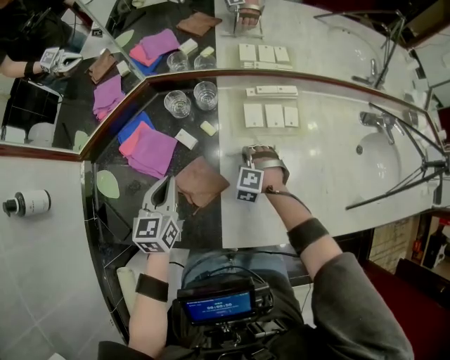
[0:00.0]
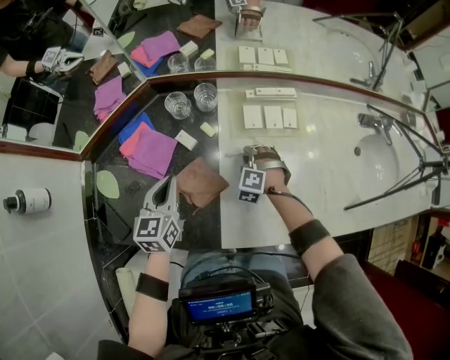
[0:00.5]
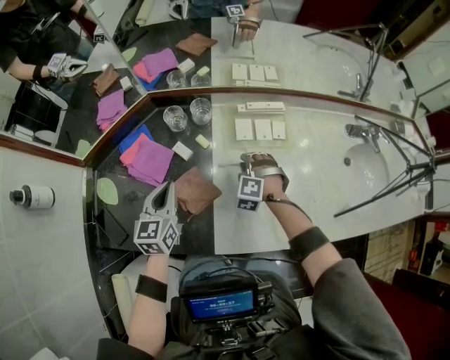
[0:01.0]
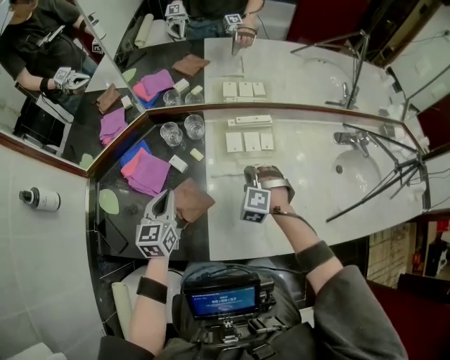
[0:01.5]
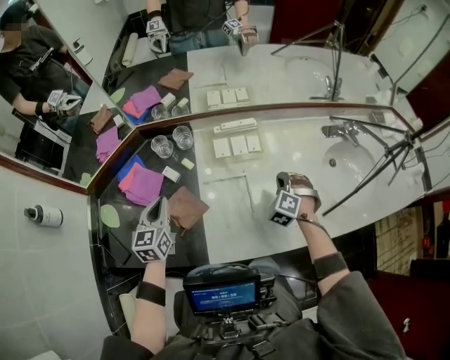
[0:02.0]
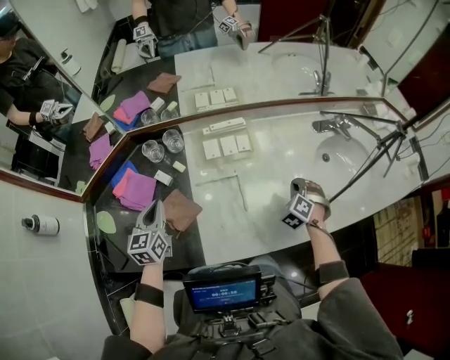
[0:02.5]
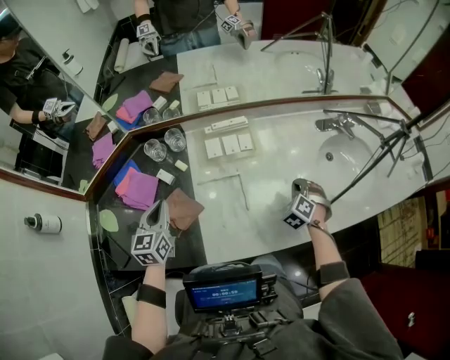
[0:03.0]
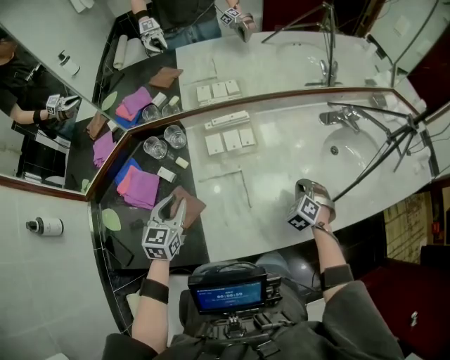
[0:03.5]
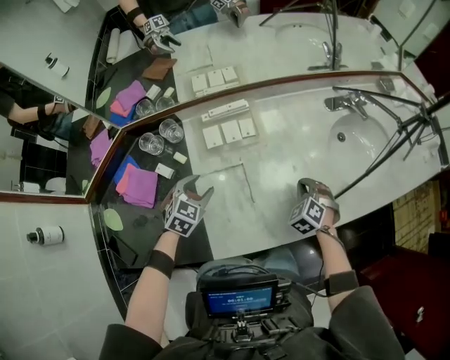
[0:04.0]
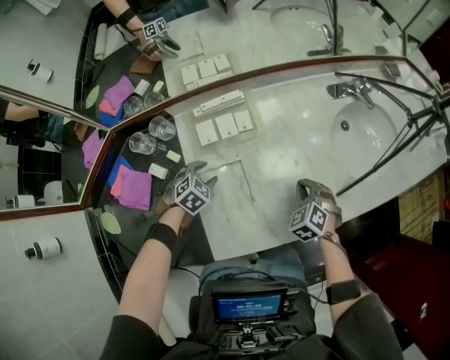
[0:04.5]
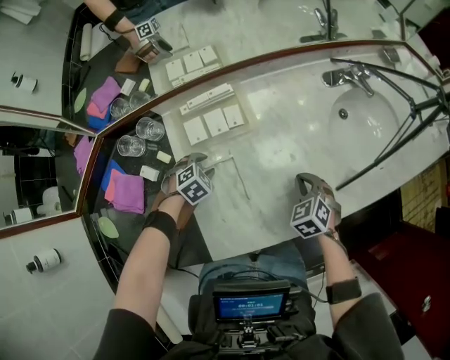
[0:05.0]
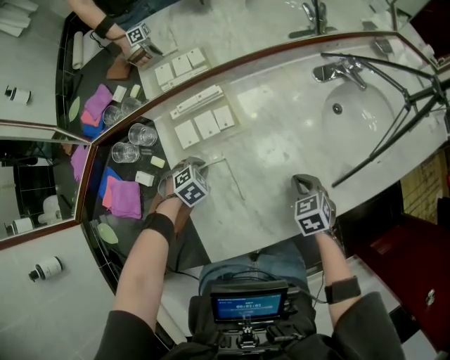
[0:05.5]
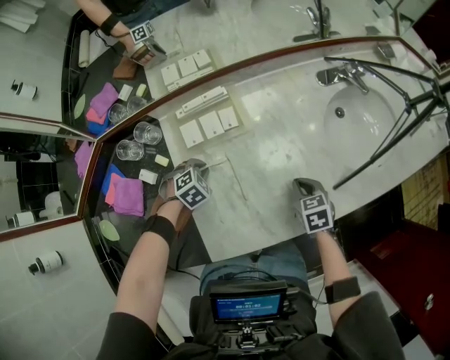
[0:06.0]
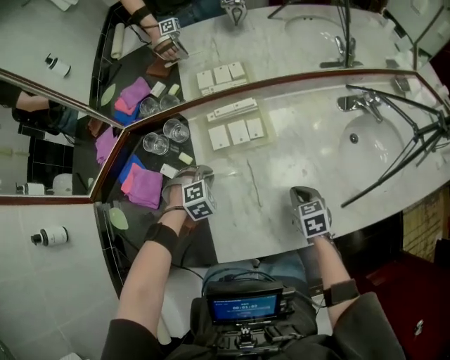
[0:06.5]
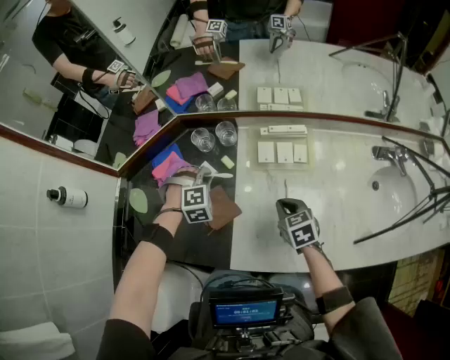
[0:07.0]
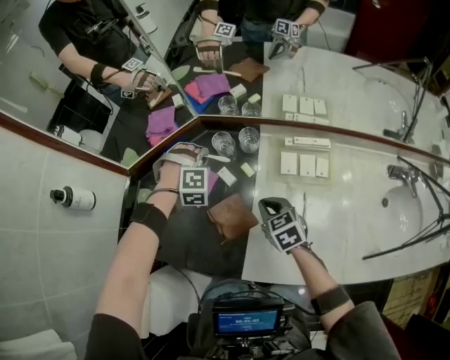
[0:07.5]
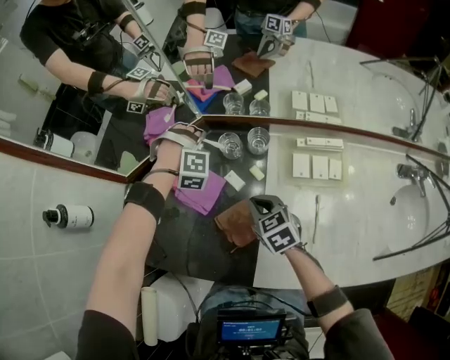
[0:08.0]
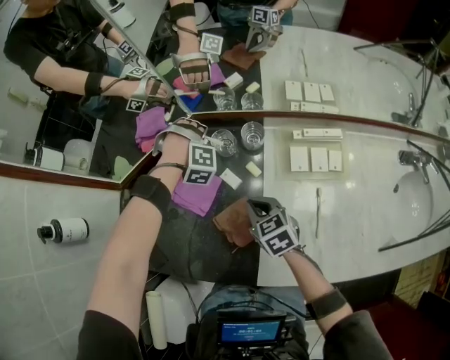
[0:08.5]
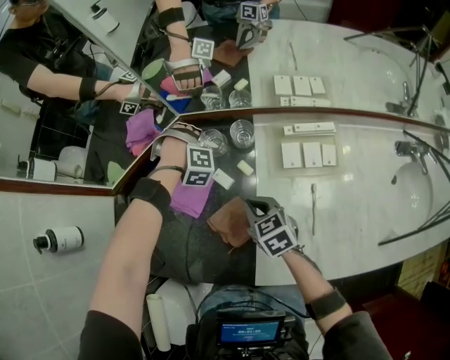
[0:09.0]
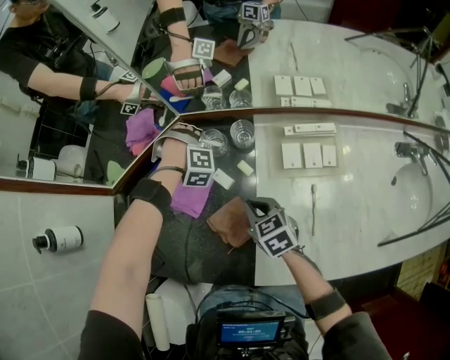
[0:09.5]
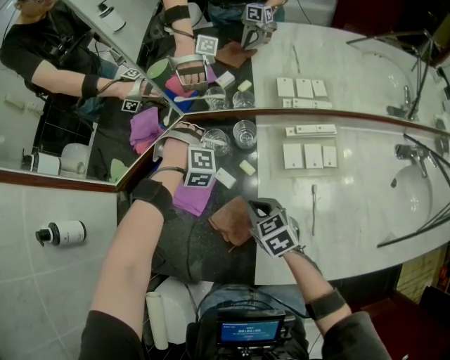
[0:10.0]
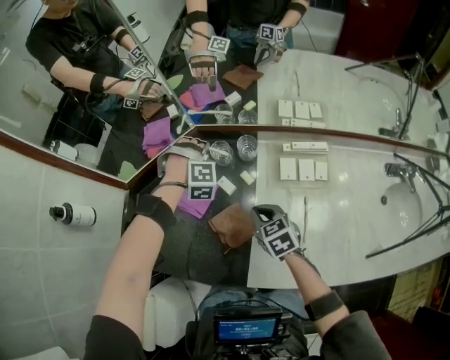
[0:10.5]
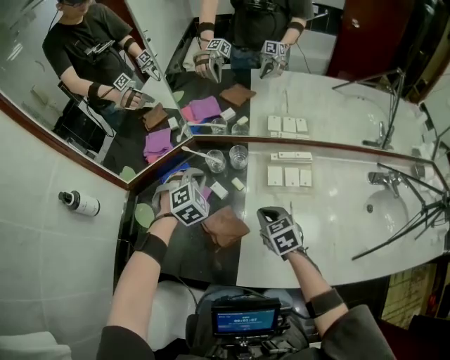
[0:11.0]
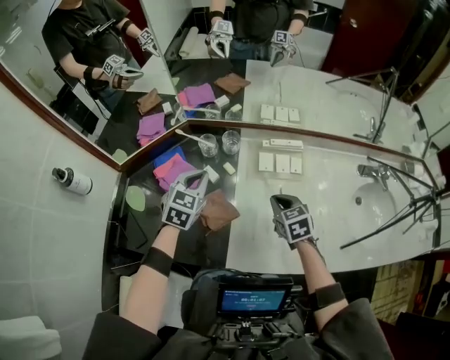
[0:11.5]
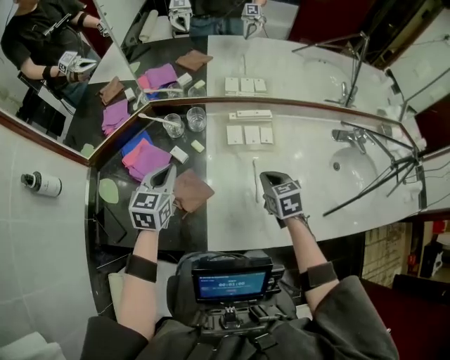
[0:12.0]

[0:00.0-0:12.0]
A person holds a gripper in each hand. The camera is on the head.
0:00.0 to 0:02.0: The right gripper is displaced to the right and upward by about 25 cm, and swivels some 20 degrees, while the left gripper heads upward, covering approximately 5 cm.
0:02.0 to 0:04.0: The right gripper heads to the right, covering some 10 cm, and changes its angle by about 20 degrees. Meanwhile the left gripper goes some 20 cm to the right, downward and forward, turns by approximately 50 degrees, and opens up.
0:04.0 to 0:06.0: The left gripper goes some 10 cm downward, changes its angle by about 30 degrees, and closes up, while the right gripper rotates around the line of its fingers by some 40 degrees, clockwise from behind.
0:06.0 to 0:08.0: The right gripper ends up about 50 cm from where it was, and changes its angle by approximately 40 degrees; the left gripper shifts by approximately 40 cm, and swivels roughly 50 degrees.
0:08.0 to 0:10.0: The left gripper heads downward, covering roughly 5 cm.
0:10.0 to 0:12.0: The right gripper changes place by roughly 25 cm, while the left gripper ends up some 30 cm from where it was, twists about 100 degrees counterclockwise, seen from behind, and closes its fingers.

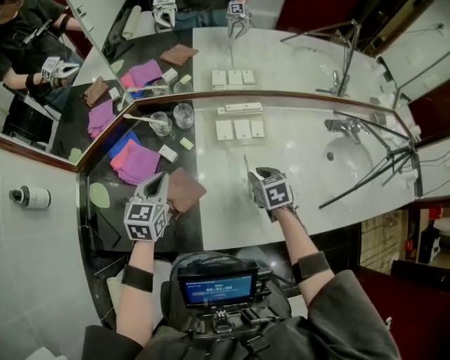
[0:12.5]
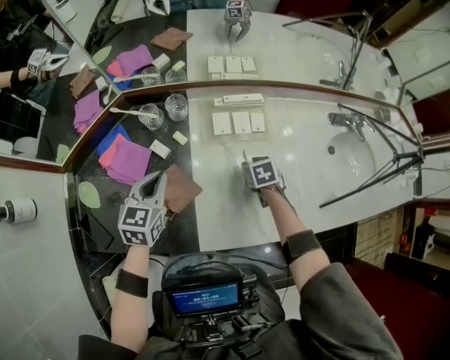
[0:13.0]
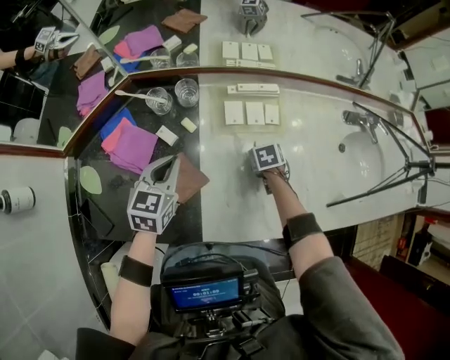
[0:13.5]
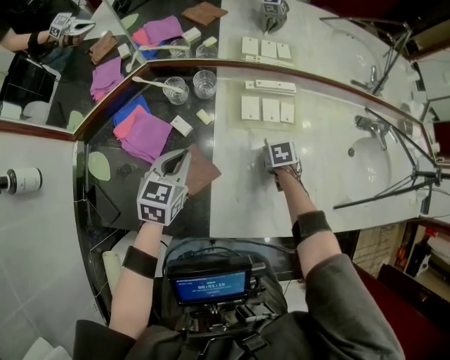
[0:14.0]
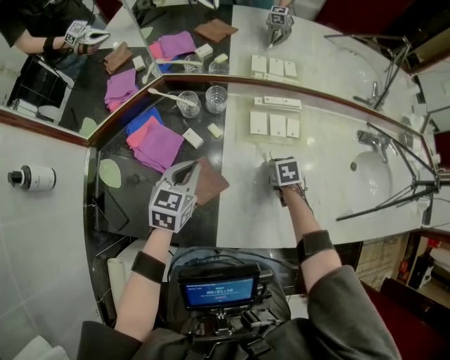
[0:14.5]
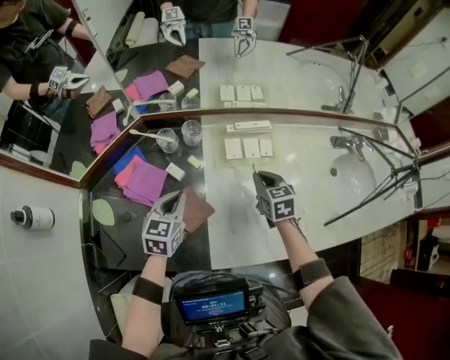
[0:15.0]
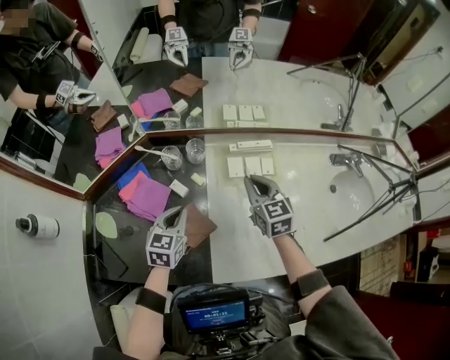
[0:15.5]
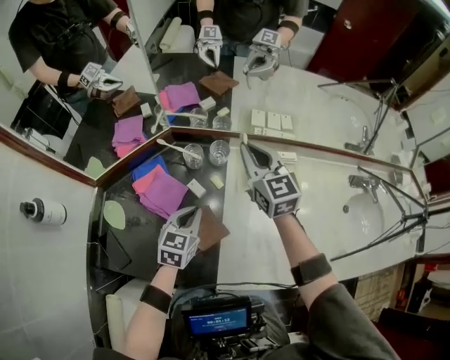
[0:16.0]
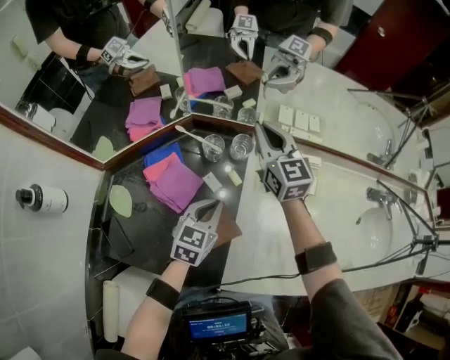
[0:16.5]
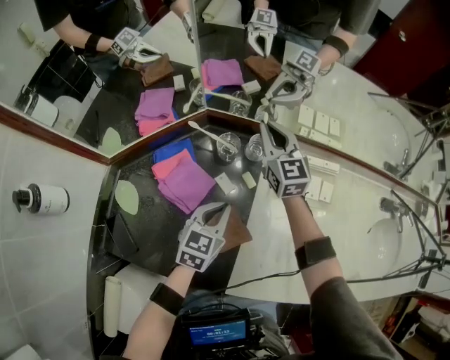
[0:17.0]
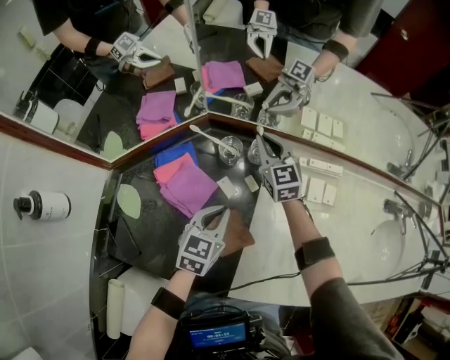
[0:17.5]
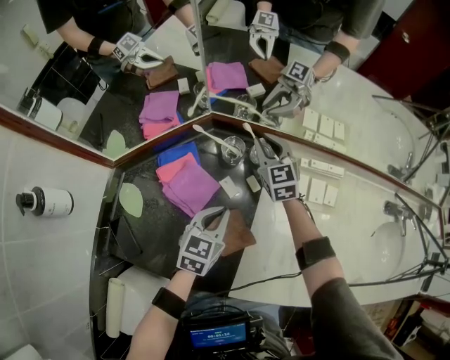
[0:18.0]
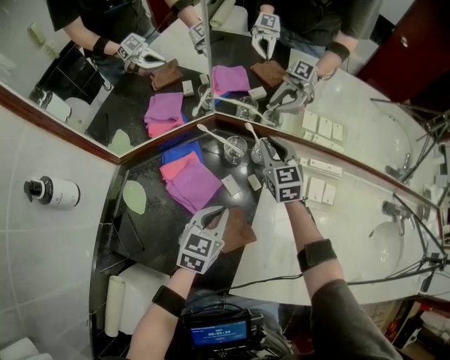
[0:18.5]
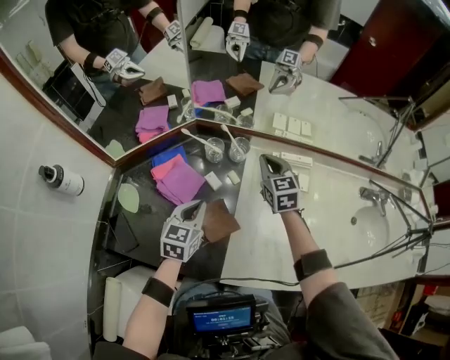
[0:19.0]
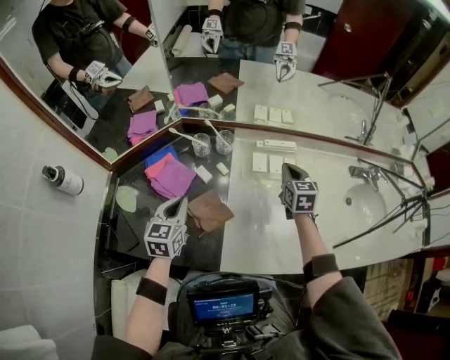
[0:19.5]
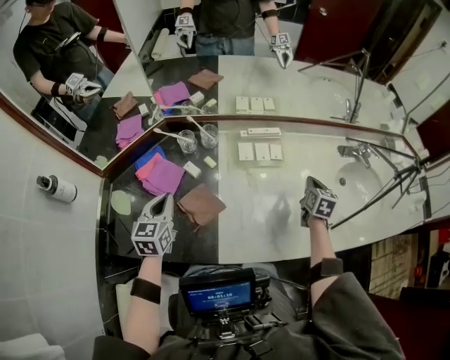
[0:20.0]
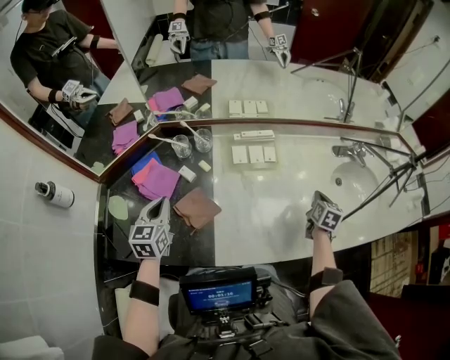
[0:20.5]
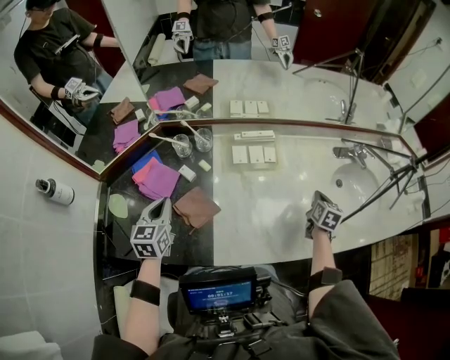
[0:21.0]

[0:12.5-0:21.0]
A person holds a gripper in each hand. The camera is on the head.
0:12.5 to 0:14.5: The right gripper travels downward by about 10 cm.
0:14.5 to 0:16.5: The right gripper travels upward, forward and to the left by roughly 40 cm, and tips its fingers upward by about 60 degrees.
0:16.5 to 0:19.0: The right gripper moves downward, backward and to the right, roughly 10 cm, while the left gripper moves to the left, about 5 cm.
0:19.0 to 0:21.0: The right gripper is displaced to the right and backward by about 40 cm, and turns by roughly 50 degrees. The left gripper moves upward, some 5 cm.

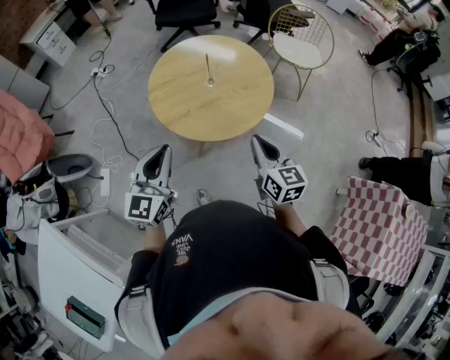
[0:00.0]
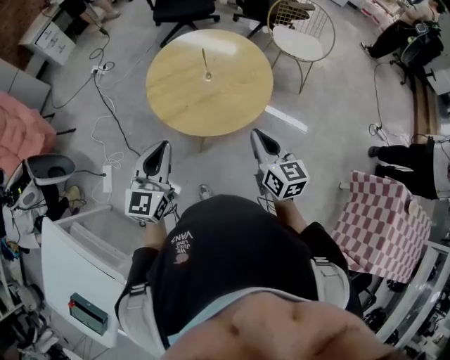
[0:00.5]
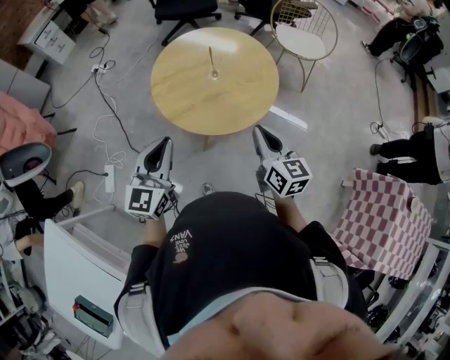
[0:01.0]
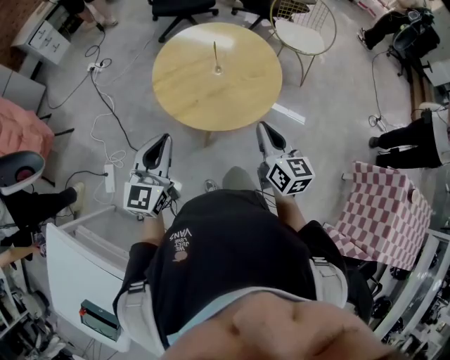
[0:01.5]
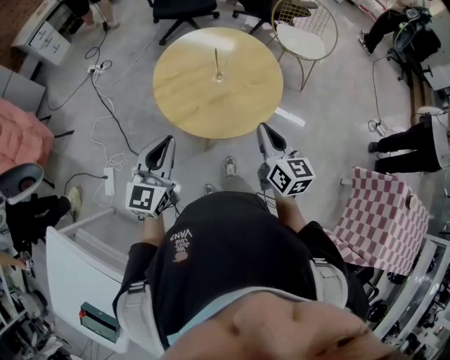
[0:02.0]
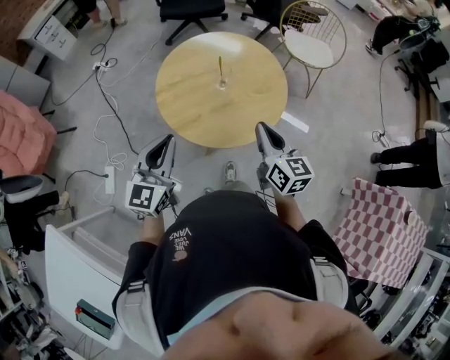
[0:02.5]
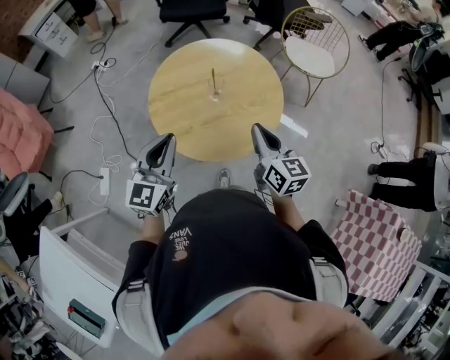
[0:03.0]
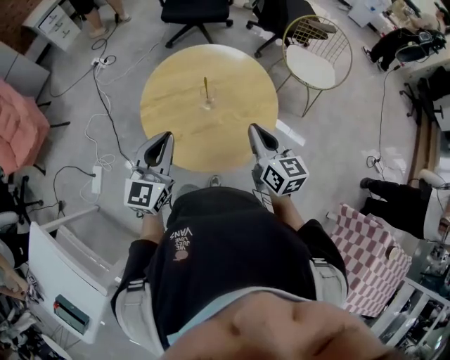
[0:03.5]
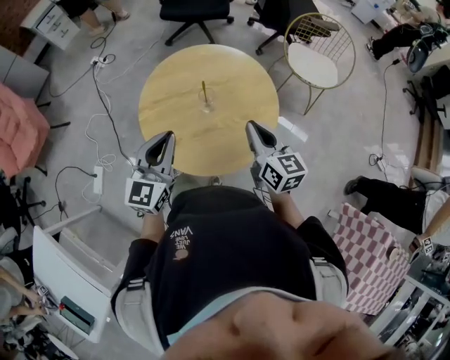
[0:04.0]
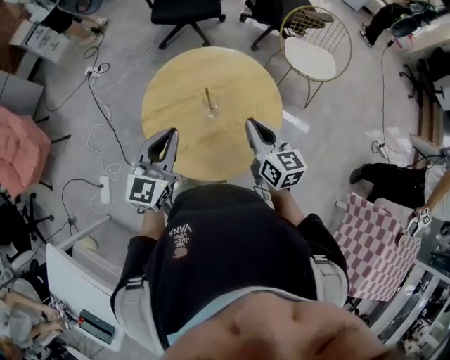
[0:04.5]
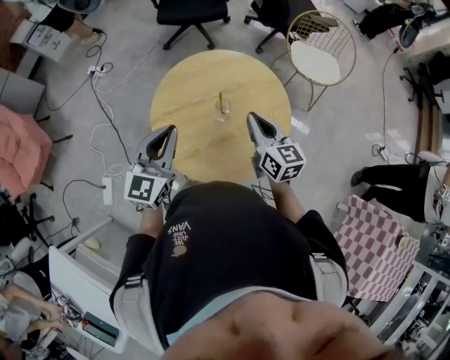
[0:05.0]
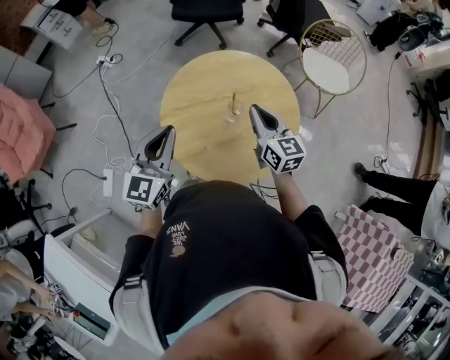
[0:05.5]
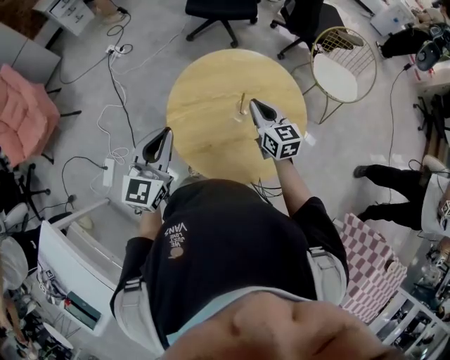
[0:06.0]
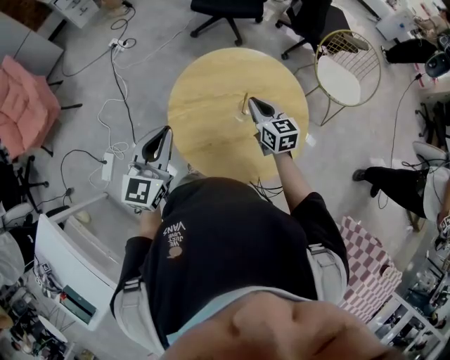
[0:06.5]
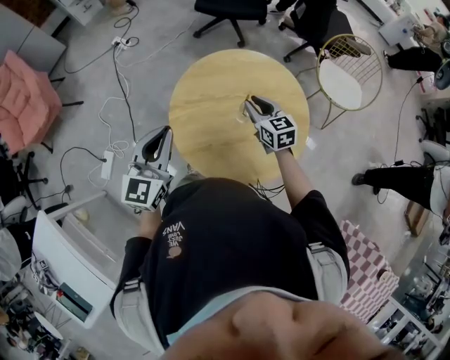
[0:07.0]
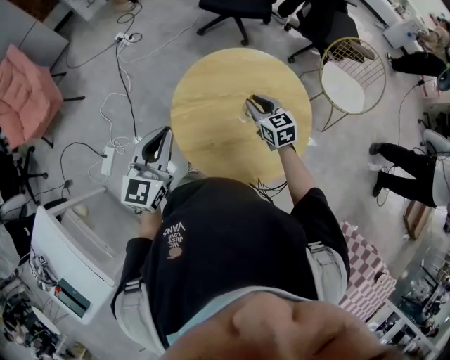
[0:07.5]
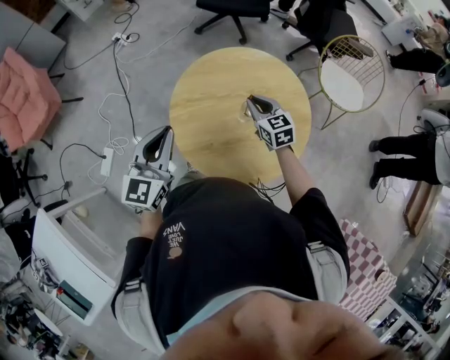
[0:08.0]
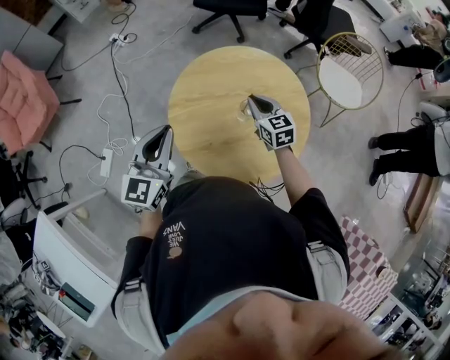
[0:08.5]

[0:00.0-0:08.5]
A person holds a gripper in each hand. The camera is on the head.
0:00.0 to 0:02.0: The left gripper is displaced forward by some 5 cm; the right gripper ends up roughly 5 cm from where it was.
0:02.0 to 0:04.0: The left gripper travels forward and to the right by approximately 20 cm. Meanwhile the right gripper shifts roughly 20 cm forward.
0:04.0 to 0:06.5: The left gripper is displaced to the left by some 15 cm, while the right gripper heads forward, to the left and downward, covering some 20 cm.
0:06.5 to 0:08.5: The right gripper opens and closes again.
